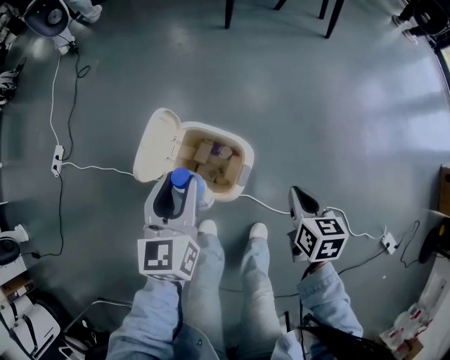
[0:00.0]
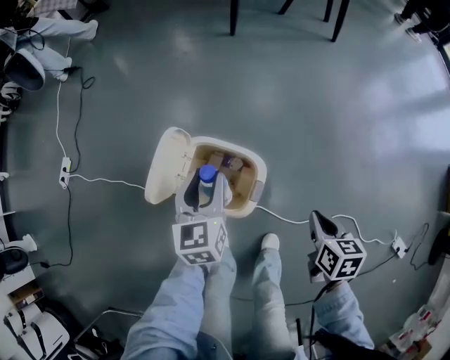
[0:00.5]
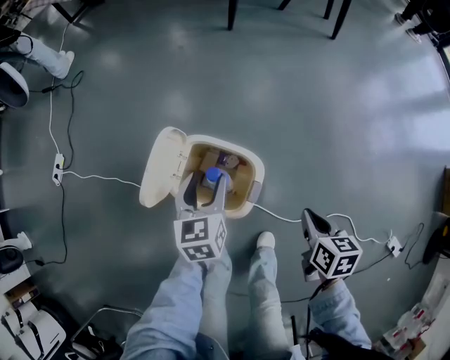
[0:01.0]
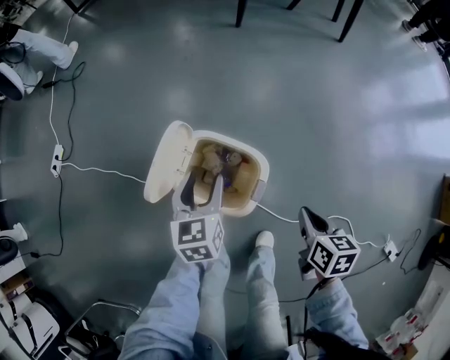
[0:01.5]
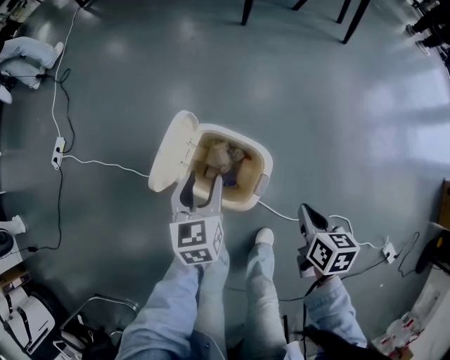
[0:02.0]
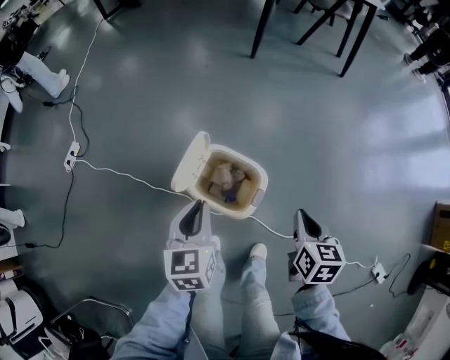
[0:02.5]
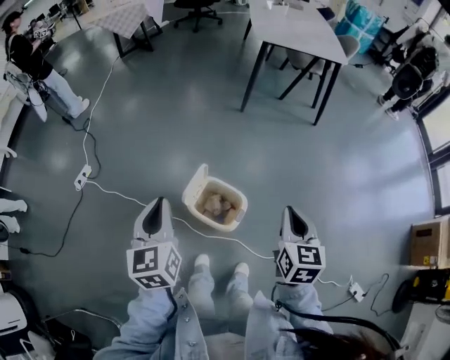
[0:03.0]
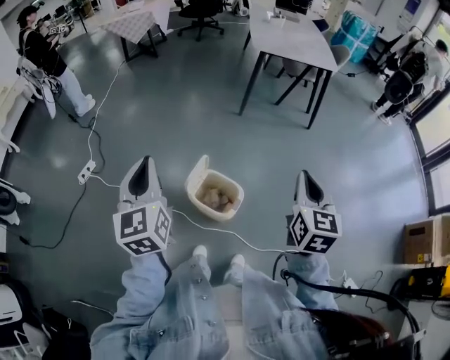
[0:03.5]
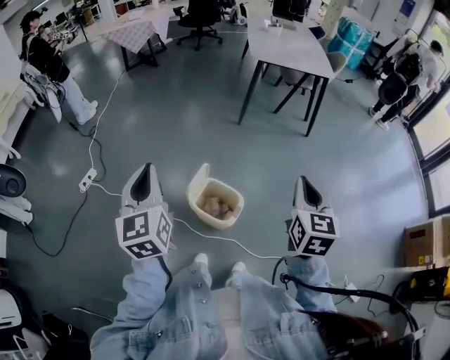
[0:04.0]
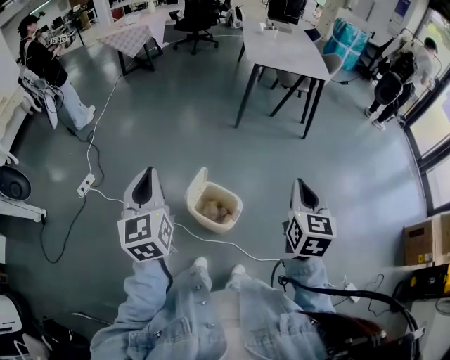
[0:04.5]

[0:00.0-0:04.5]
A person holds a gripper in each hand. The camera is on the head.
0:00.0 to 0:02.0: The left gripper moves downward, about 10 cm.
0:02.0 to 0:04.5: Both grippers travel together upward, roughly 50 cm. The right gripper tilts its fingers approximately 30 degrees upward, while the left gripper turns by some 30 degrees, and closes.

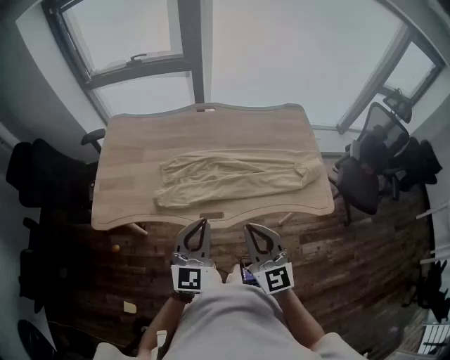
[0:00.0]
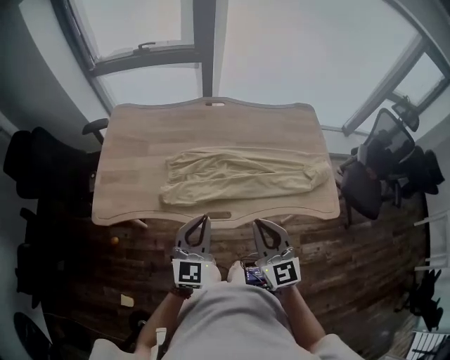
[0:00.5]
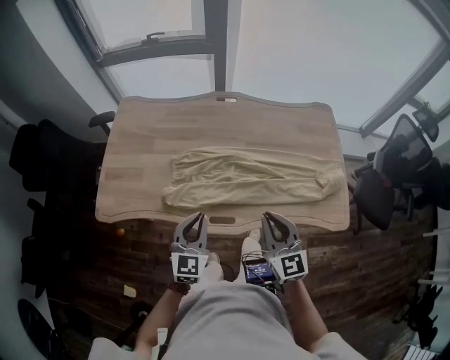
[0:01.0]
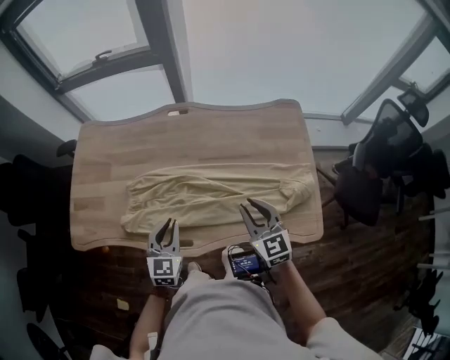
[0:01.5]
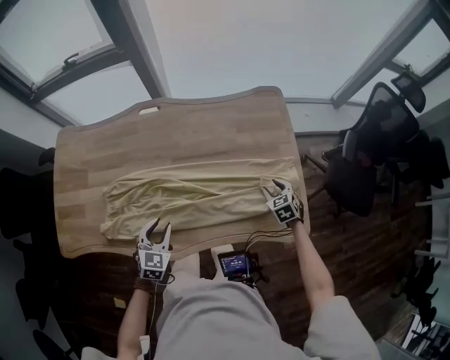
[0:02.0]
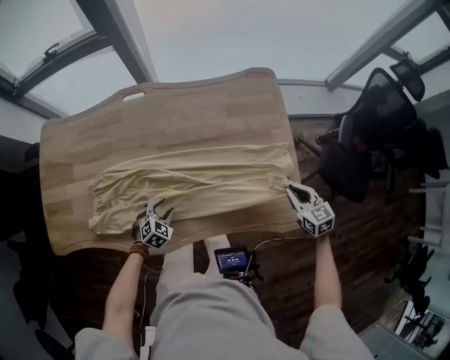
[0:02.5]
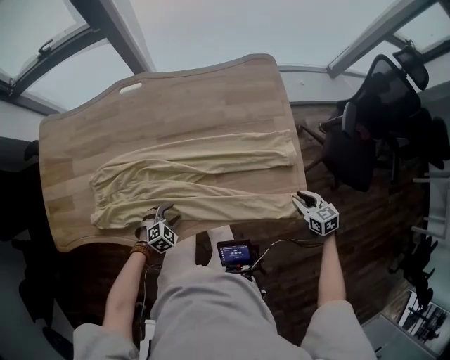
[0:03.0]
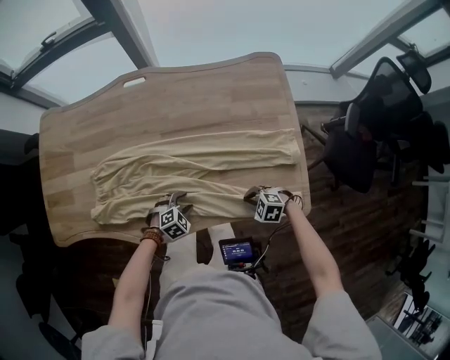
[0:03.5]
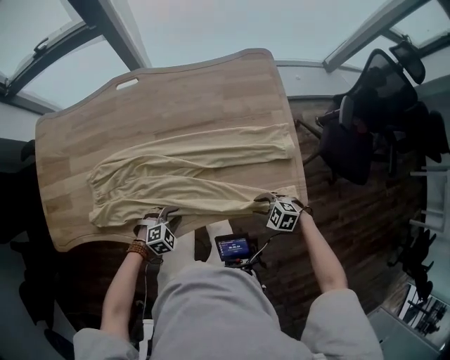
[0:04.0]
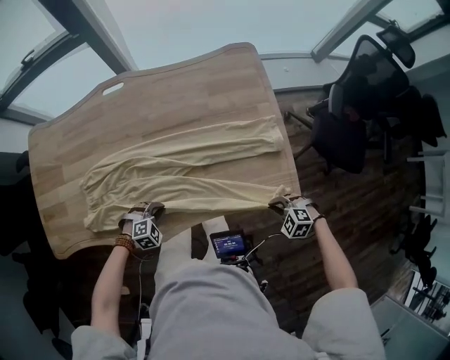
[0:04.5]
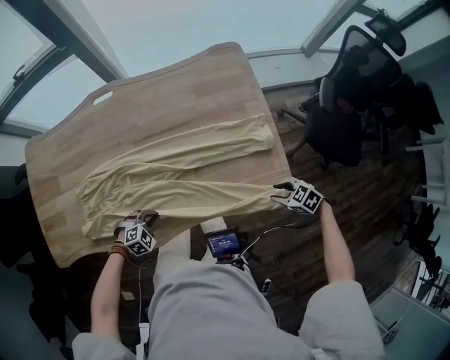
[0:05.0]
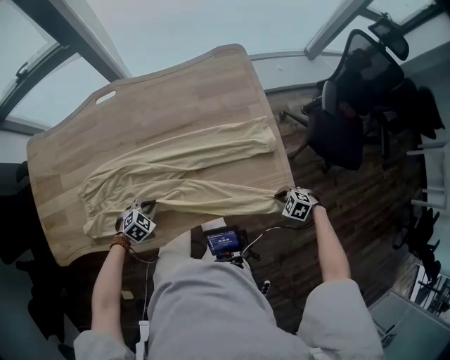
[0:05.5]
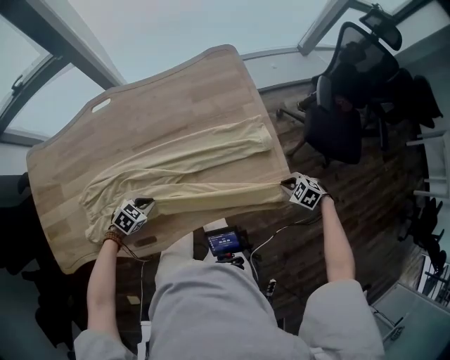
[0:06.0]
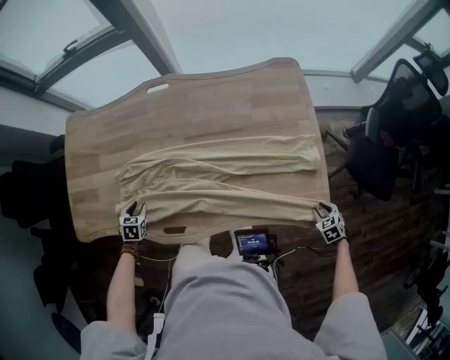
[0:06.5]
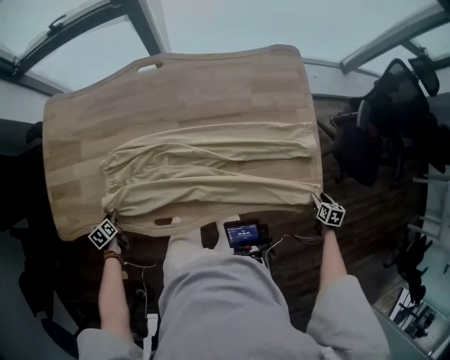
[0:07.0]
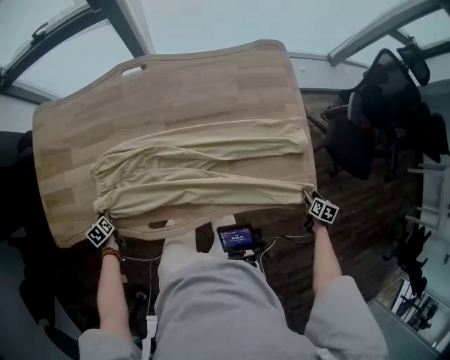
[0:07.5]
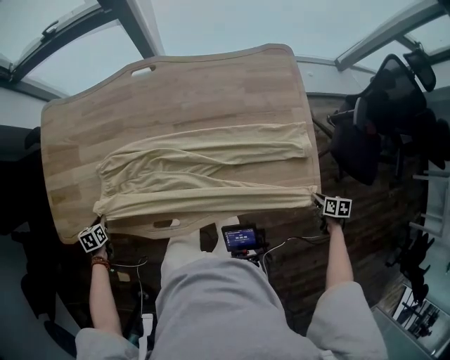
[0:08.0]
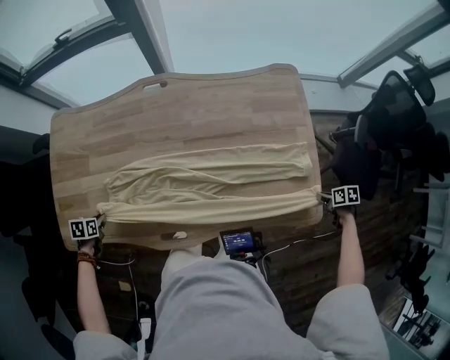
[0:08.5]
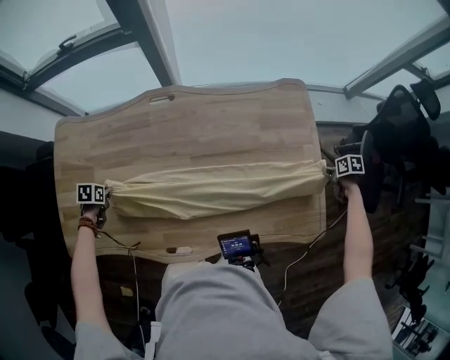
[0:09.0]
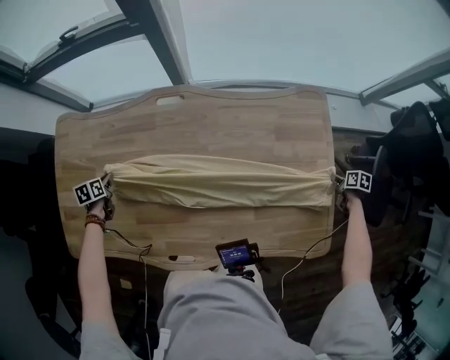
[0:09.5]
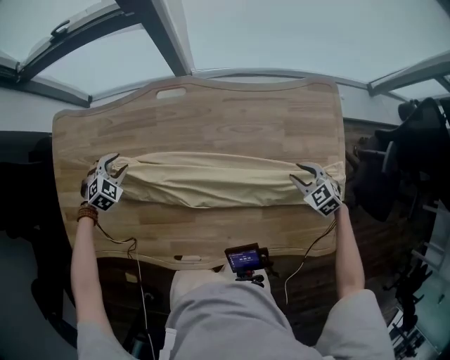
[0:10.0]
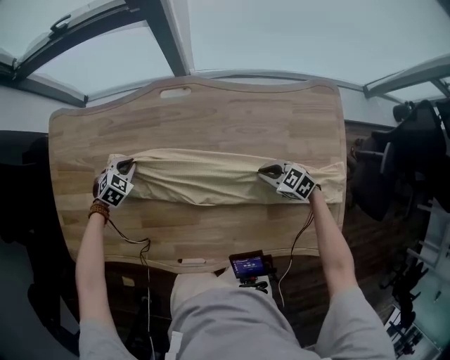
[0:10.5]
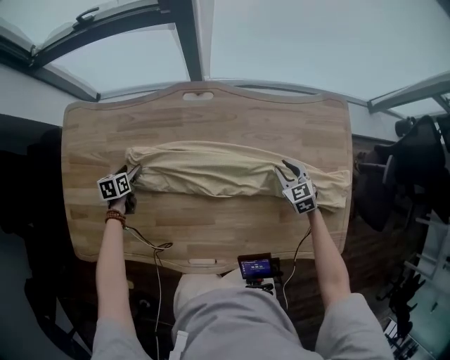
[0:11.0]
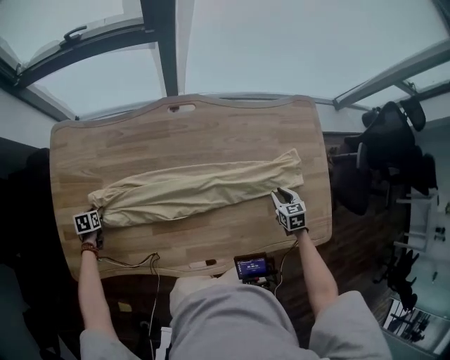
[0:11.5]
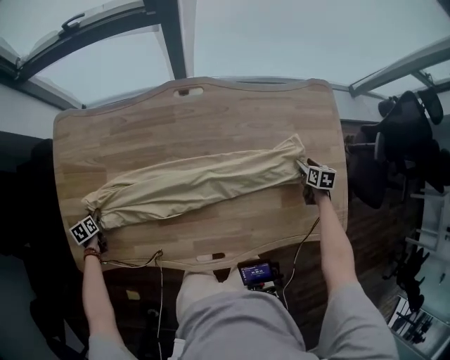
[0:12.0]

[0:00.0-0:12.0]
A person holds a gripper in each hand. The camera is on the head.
0:00.0 to 0:02.0: The left gripper moves downward, forward and to the right, some 35 cm, and points its fingers approximately 40 degrees further downward. Meanwhile the right gripper is displaced to the right, downward and forward by about 60 cm, tips its fingers downward by approximately 50 degrees, and opens its fingers.
0:02.0 to 0:04.0: The left gripper travels downward by roughly 15 cm, and swivels some 50 degrees. The right gripper shifts by about 20 cm, changes its angle by some 50 degrees, and closes, then reopens.
0:04.0 to 0:06.0: The left gripper changes place by some 10 cm, and turns by approximately 20 degrees, while the right gripper ends up some 20 cm from where it was, changes its angle by about 20 degrees, and closes.
0:06.0 to 0:08.0: The left gripper ends up about 40 cm from where it was, rotates around the line of its fingers by about 60 degrees, counterclockwise from behind, and opens, then closes once more. The right gripper twists approximately 60 degrees clockwise, seen from behind, and opens and closes again.
0:08.0 to 0:10.0: The left gripper moves approximately 35 cm, twists approximately 70 degrees clockwise, seen from behind, and opens up. Meanwhile the right gripper goes up and down, approximately 5 cm each way, reversing 2 times, twists about 70 degrees counterclockwise, seen from behind, and opens its fingers.
0:10.0 to 0:12.0: The left gripper travels to the left by approximately 35 cm, twists roughly 80 degrees counterclockwise, seen from behind, and closes, then opens again, while the right gripper travels downward by some 5 cm, goes to the left and returns, approximately 15 cm each way, twists roughly 60 degrees clockwise, seen from behind, and opens its fingers.

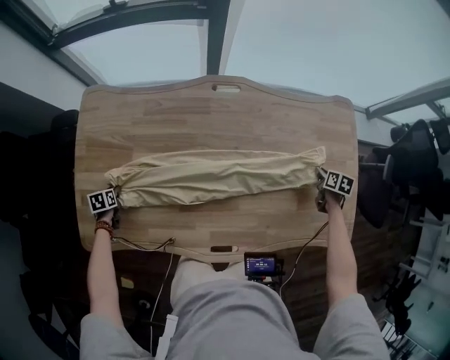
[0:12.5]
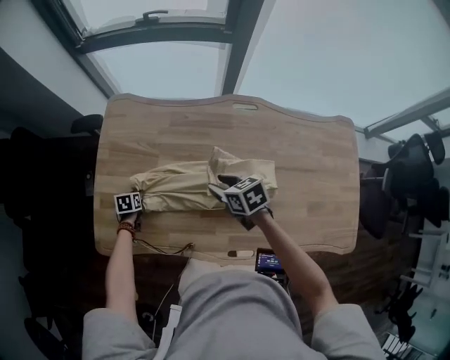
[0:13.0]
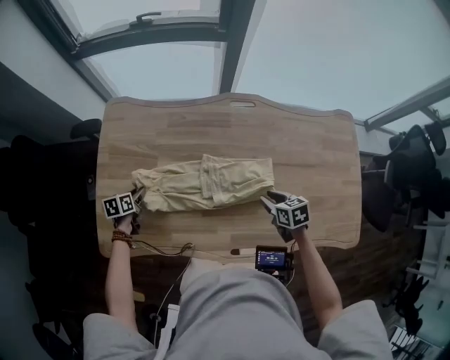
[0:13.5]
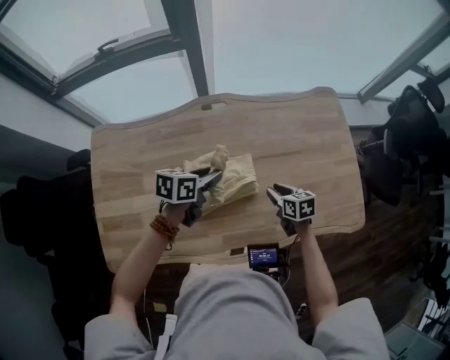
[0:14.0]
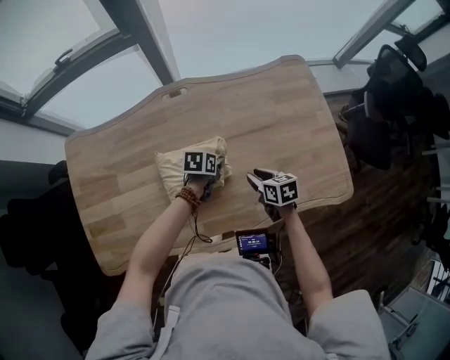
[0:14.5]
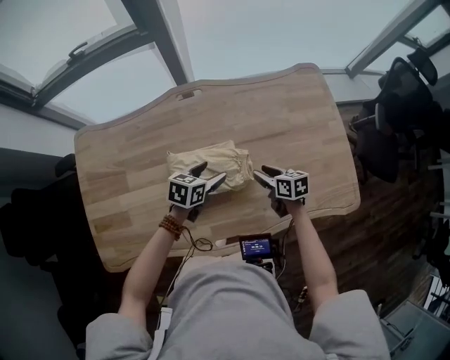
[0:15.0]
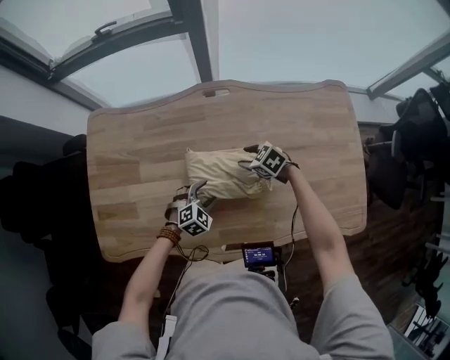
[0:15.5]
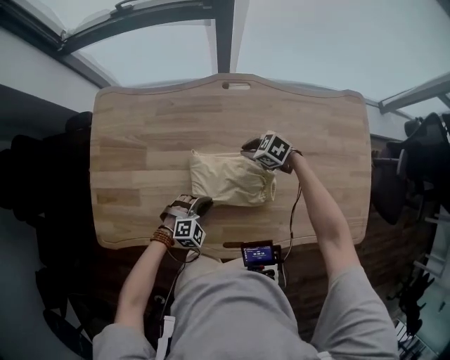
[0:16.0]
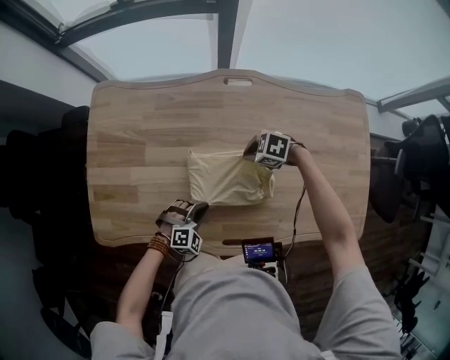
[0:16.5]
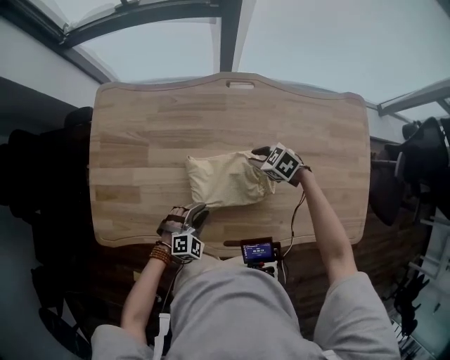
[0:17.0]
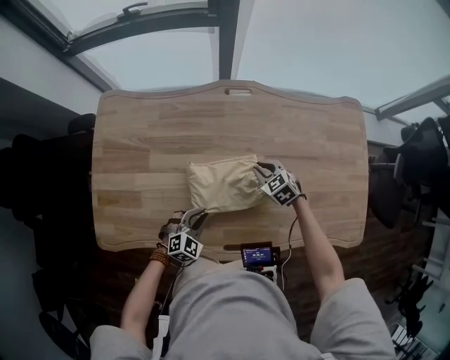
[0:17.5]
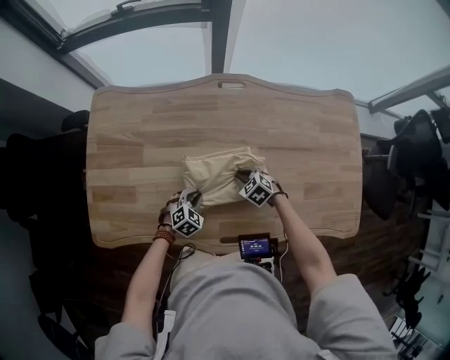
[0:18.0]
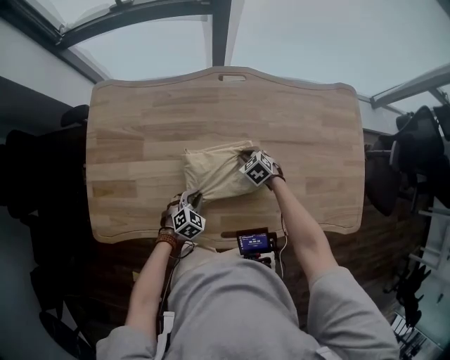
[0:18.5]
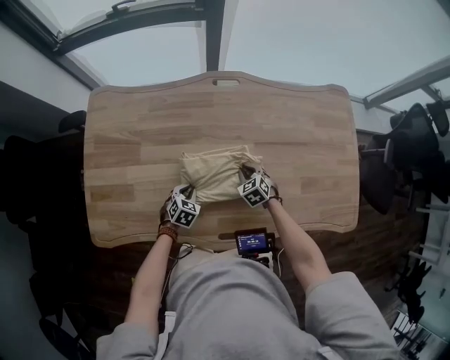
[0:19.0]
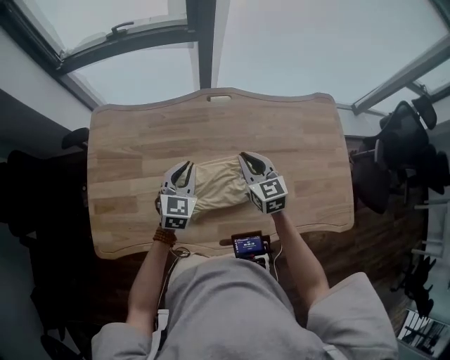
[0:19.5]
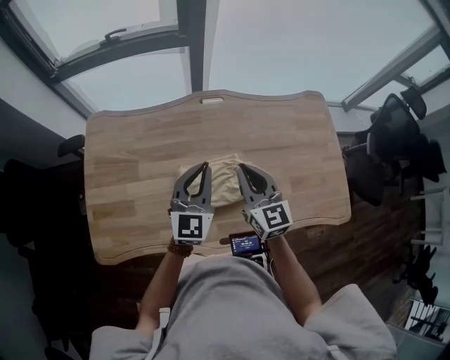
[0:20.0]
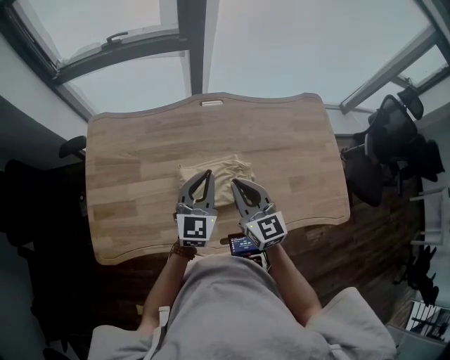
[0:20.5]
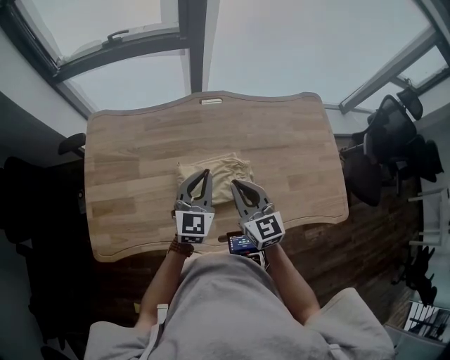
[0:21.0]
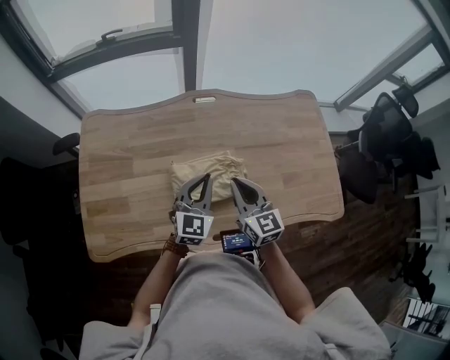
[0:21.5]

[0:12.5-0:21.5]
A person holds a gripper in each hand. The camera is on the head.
0:12.5 to 0:14.5: The left gripper changes place by about 60 cm, and turns by some 40 degrees, while the right gripper rotates approximately 20 degrees.
0:14.5 to 0:17.0: The left gripper reaches approximately 5 cm upward, then returns, twists some 60 degrees clockwise, seen from behind, and opens, then closes once more; the right gripper moves roughly 20 cm, rolls counterclockwise, seen from behind, by approximately 50 degrees, and closes, then opens again.
0:17.0 to 0:19.5: The right gripper heads upward, covering some 15 cm, and angles its fingers upward, by approximately 30 degrees, while the left gripper goes approximately 20 cm upward and forward, and changes its angle by approximately 50 degrees.
0:19.5 to 0:21.5: The left gripper is displaced backward and to the right by approximately 10 cm. The right gripper travels backward by about 10 cm.
